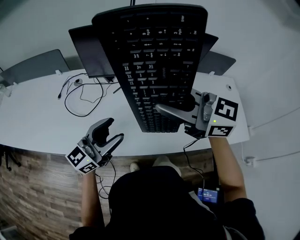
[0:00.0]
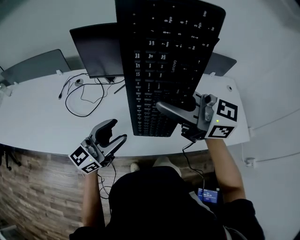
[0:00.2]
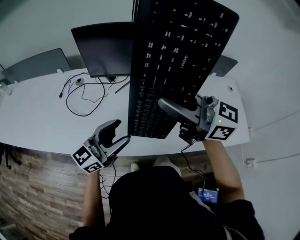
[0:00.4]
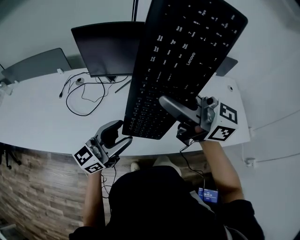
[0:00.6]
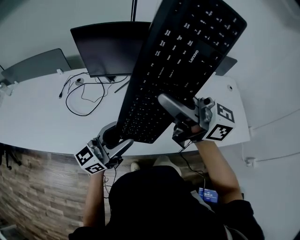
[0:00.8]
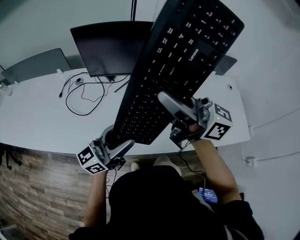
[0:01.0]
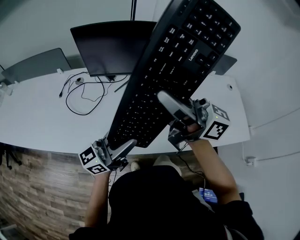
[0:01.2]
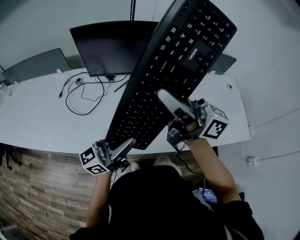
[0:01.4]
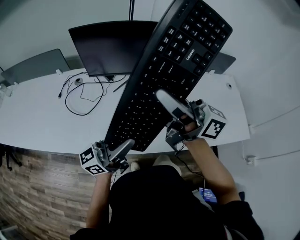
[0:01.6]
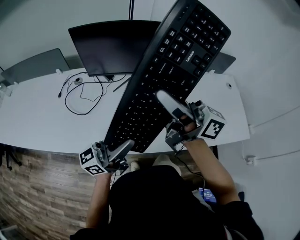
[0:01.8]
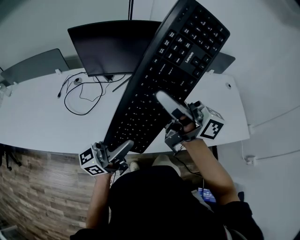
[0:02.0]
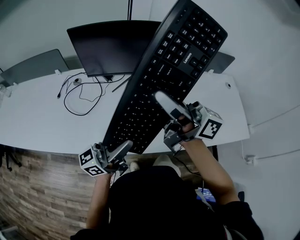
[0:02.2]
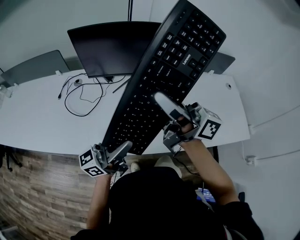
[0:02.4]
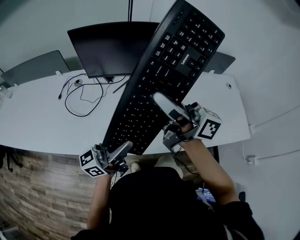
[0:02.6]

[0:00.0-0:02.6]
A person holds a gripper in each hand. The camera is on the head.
0:00.0 to 0:01.2: The right gripper tilts its fingers some 30 degrees upward. Meanwhile the left gripper changes place by roughly 5 cm.
0:01.2 to 0:02.6: The left gripper closes.

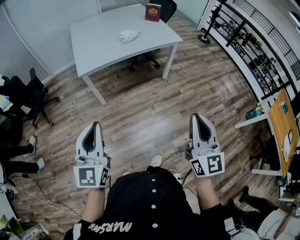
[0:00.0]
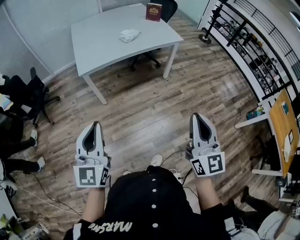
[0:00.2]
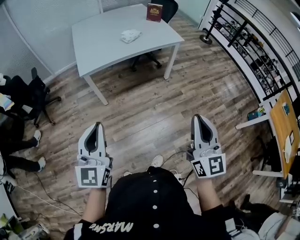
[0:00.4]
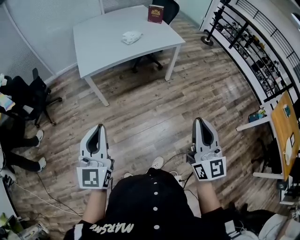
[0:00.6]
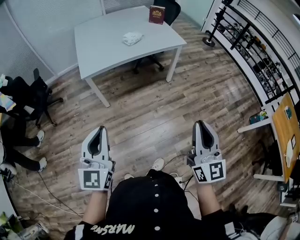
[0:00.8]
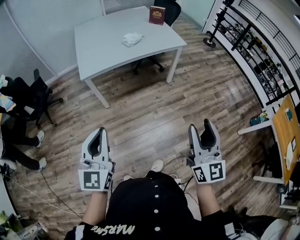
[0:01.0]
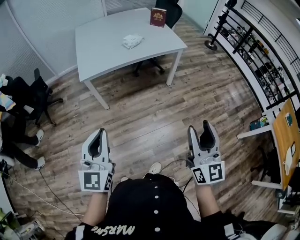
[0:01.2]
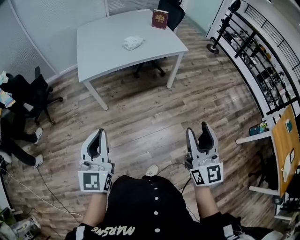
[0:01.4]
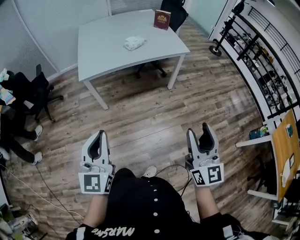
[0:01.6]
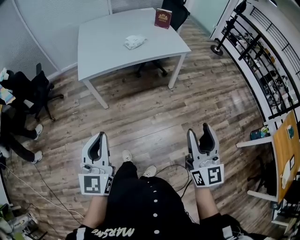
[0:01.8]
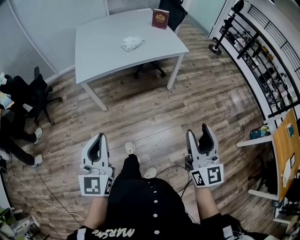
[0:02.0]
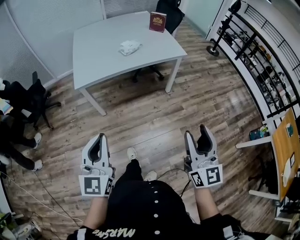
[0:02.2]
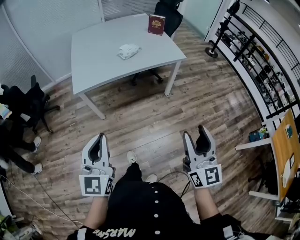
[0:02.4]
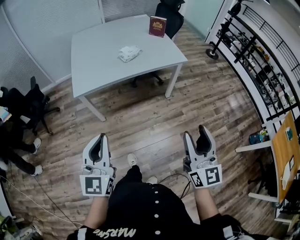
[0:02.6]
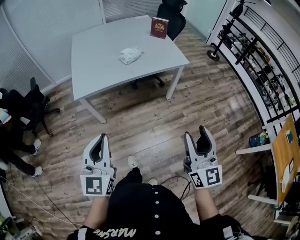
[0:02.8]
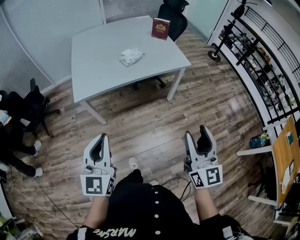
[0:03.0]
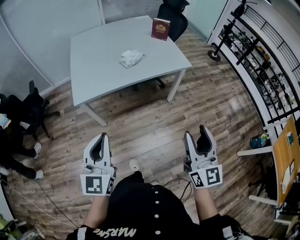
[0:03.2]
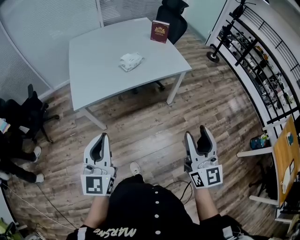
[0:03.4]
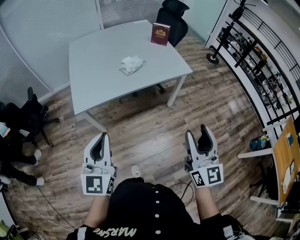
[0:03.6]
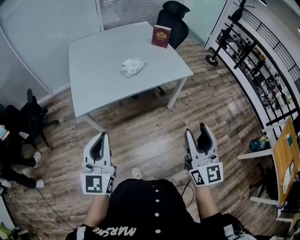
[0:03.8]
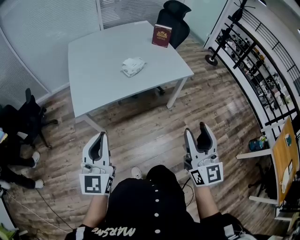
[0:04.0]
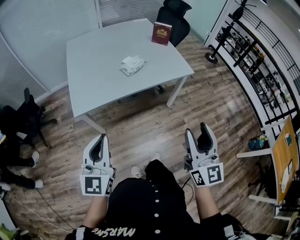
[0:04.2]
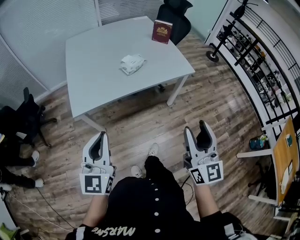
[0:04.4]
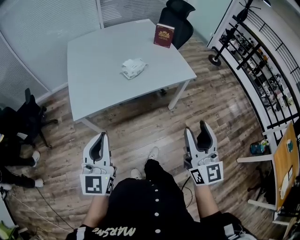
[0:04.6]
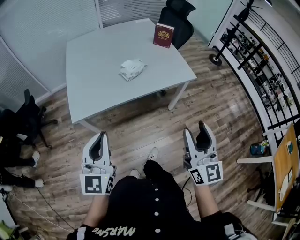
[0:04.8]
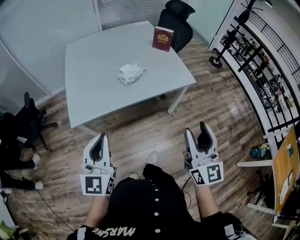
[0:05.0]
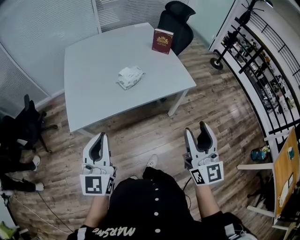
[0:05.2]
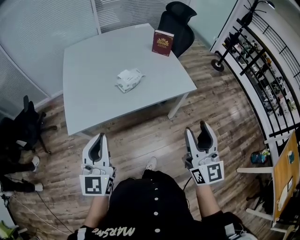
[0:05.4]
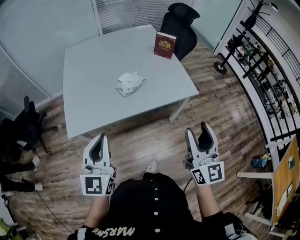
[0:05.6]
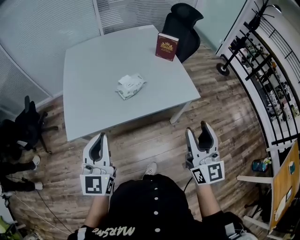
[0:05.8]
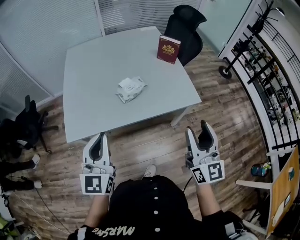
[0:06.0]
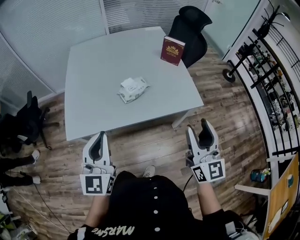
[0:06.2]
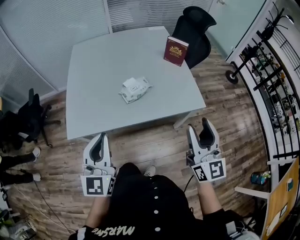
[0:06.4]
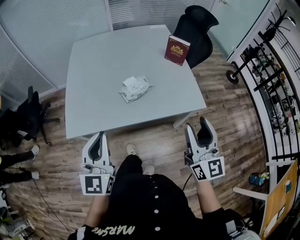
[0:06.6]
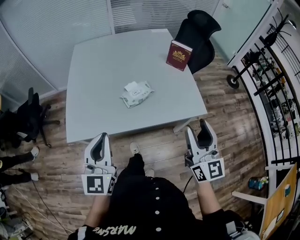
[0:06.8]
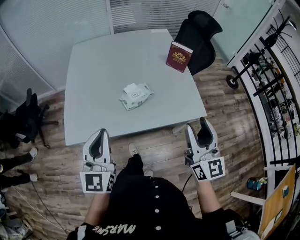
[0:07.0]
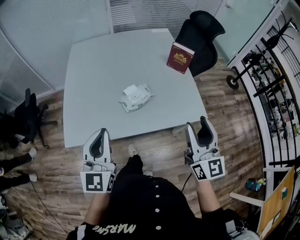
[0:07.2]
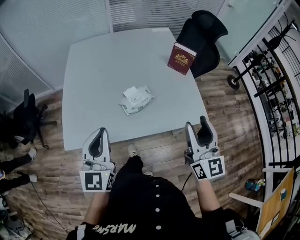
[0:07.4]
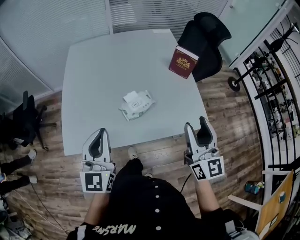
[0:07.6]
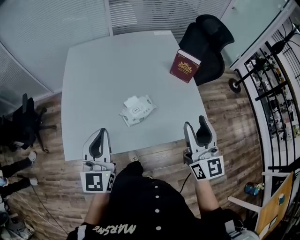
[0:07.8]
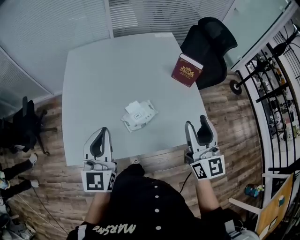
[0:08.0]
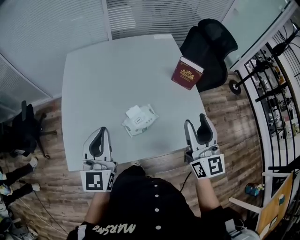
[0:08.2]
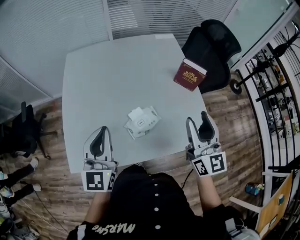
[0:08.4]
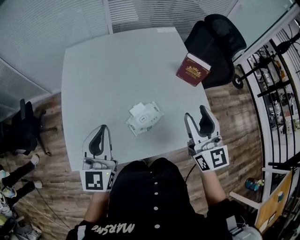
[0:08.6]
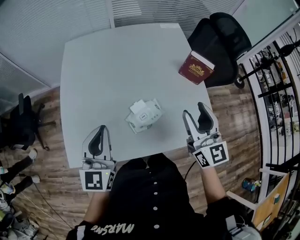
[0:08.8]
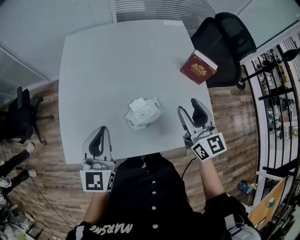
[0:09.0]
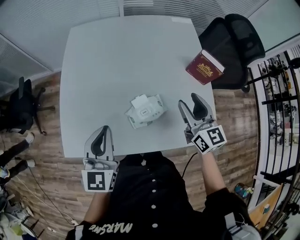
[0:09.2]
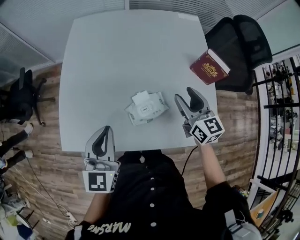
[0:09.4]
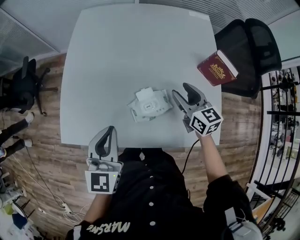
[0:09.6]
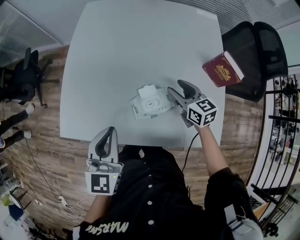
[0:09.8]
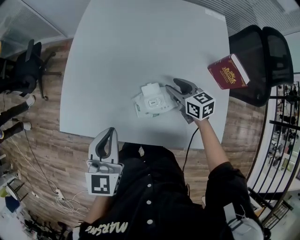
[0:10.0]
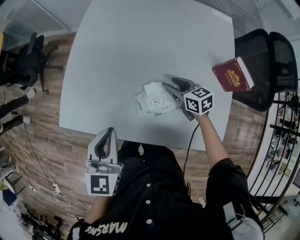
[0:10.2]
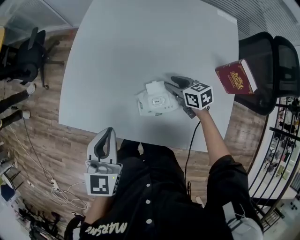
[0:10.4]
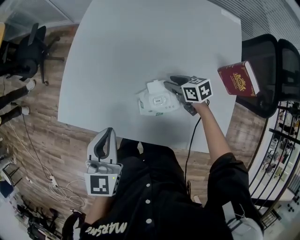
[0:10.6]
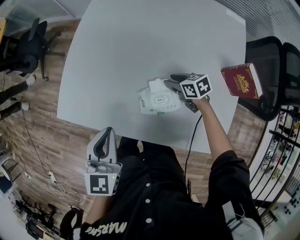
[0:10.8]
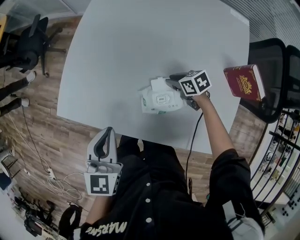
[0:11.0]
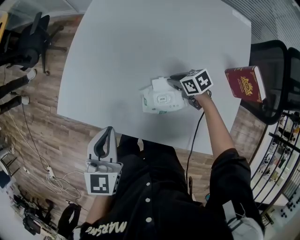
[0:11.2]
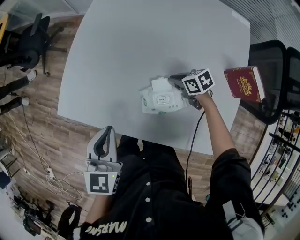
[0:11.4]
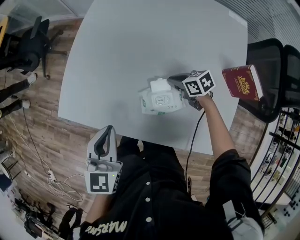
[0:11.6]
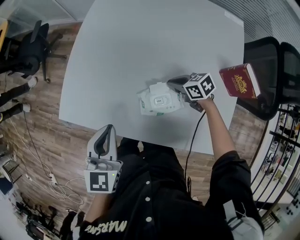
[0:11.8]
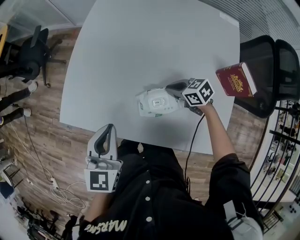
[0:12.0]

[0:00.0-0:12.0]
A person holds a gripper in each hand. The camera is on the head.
0:00.0 to 0:01.6: The left gripper heads to the right, covering about 10 cm. Meanwhile the right gripper is displaced to the right and forward by some 10 cm, and opens.
0:01.6 to 0:03.0: Both grippers move forward, approximately 15 cm.
0:03.0 to 0:04.4: The left gripper is displaced forward by roughly 10 cm, while the right gripper is displaced forward and to the left by approximately 15 cm.
0:04.4 to 0:06.0: Both grippers travel together forward, approximately 20 cm.
0:06.0 to 0:07.6: The grippers both shift forward by roughly 15 cm.
0:07.6 to 0:09.0: The right gripper is displaced forward by about 20 cm. Meanwhile the left gripper travels forward by some 10 cm.
0:09.0 to 0:10.4: The left gripper is displaced downward by roughly 5 cm, and rotates some 20 degrees. The right gripper shifts approximately 25 cm downward, and points its fingers approximately 30 degrees further downward.
0:10.4 to 0:12.0: The right gripper swivels about 20 degrees, and closes its fingers.

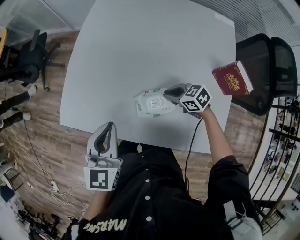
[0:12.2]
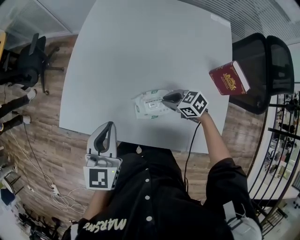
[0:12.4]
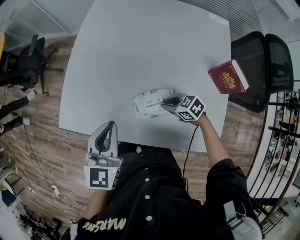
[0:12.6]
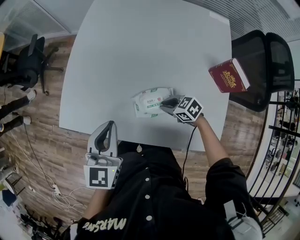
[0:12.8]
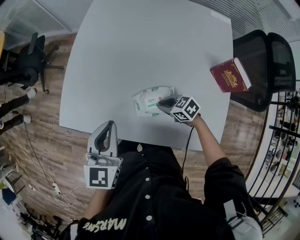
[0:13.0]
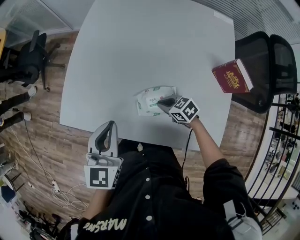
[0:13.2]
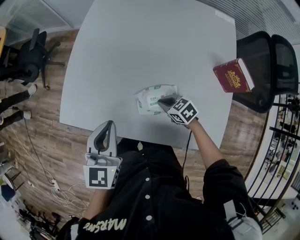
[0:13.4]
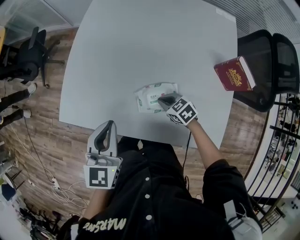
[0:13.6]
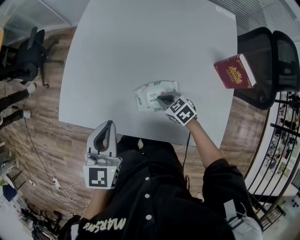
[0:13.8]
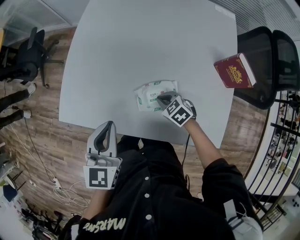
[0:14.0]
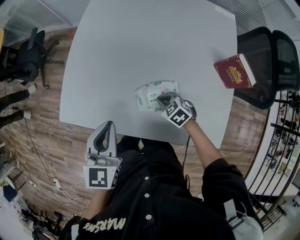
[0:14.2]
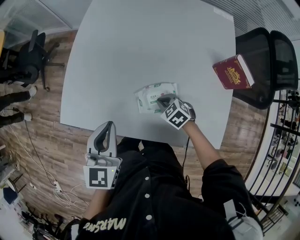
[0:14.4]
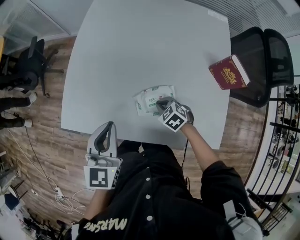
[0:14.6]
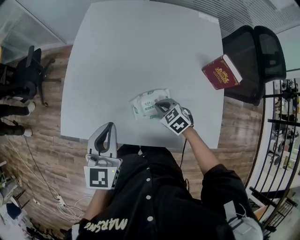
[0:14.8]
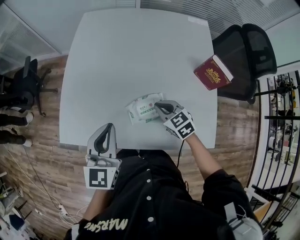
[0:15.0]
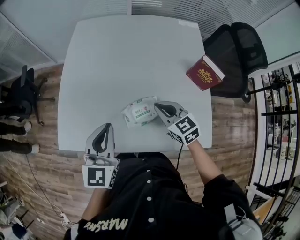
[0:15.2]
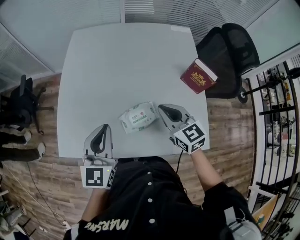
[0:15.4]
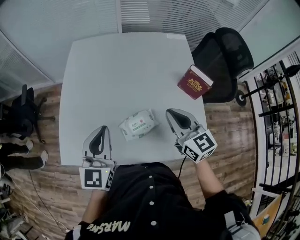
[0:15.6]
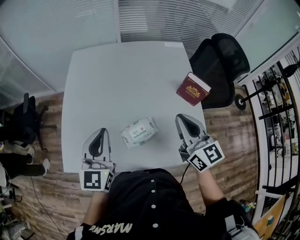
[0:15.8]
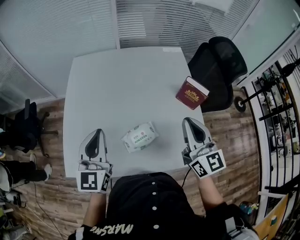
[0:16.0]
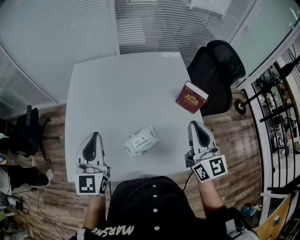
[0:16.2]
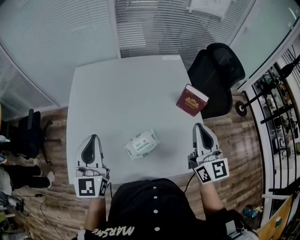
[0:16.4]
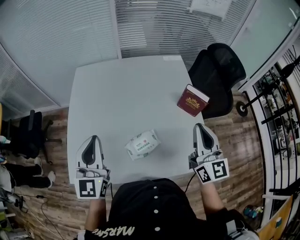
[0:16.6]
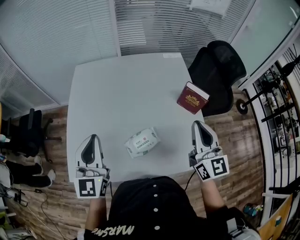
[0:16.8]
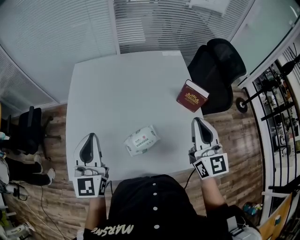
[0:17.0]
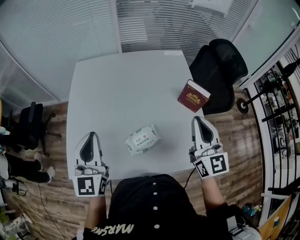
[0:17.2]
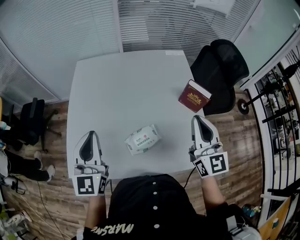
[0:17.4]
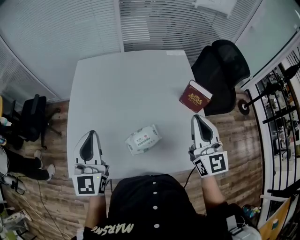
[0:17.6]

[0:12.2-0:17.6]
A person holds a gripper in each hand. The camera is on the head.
0:12.2 to 0:13.6: The right gripper changes place by some 5 cm.
0:13.6 to 0:15.0: The right gripper is displaced upward by approximately 10 cm, and rotates about 20 degrees.
0:15.0 to 0:16.2: The right gripper moves upward and to the right, roughly 30 cm, and tilts its fingers some 40 degrees upward, while the left gripper travels upward and forward by approximately 10 cm.
0:16.2 to 0:17.6: The grippers stay close to where they were, moving slightly.

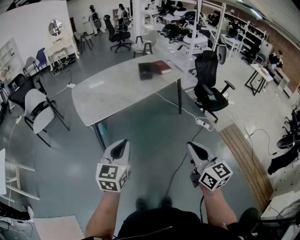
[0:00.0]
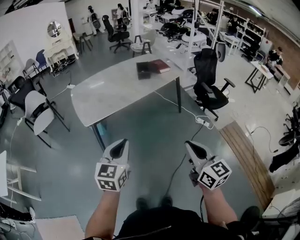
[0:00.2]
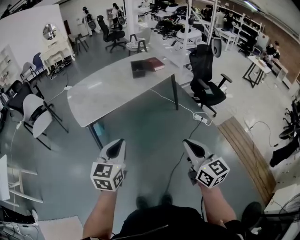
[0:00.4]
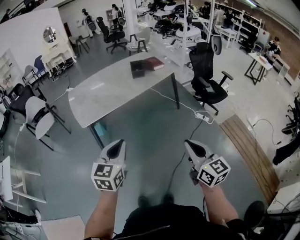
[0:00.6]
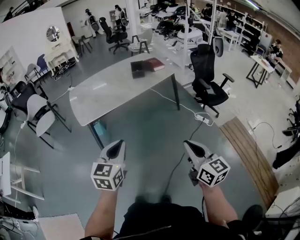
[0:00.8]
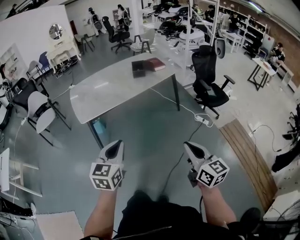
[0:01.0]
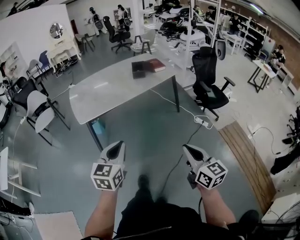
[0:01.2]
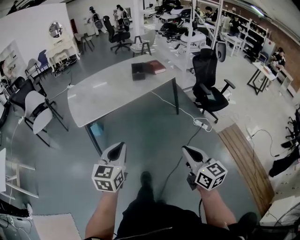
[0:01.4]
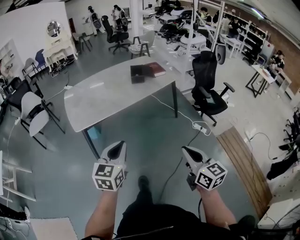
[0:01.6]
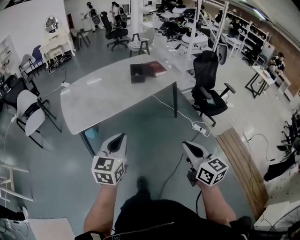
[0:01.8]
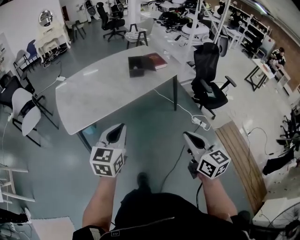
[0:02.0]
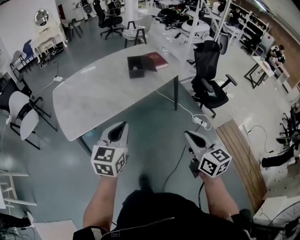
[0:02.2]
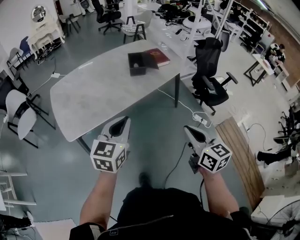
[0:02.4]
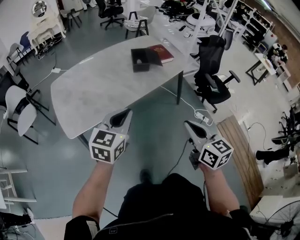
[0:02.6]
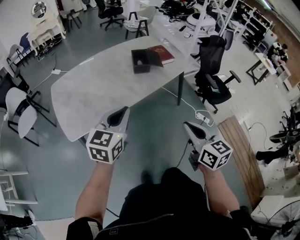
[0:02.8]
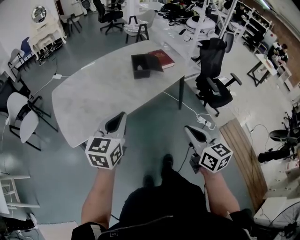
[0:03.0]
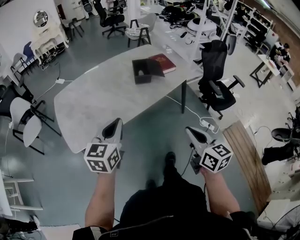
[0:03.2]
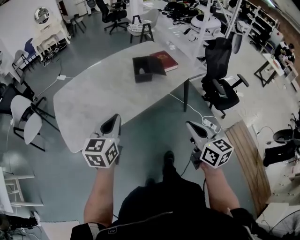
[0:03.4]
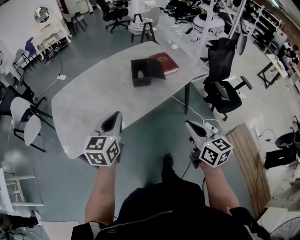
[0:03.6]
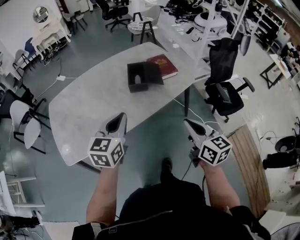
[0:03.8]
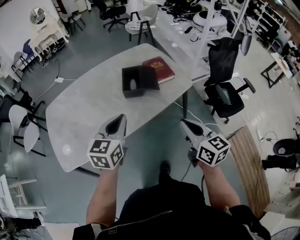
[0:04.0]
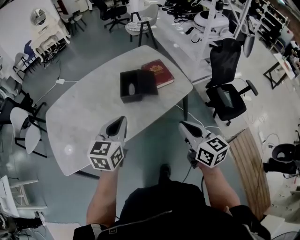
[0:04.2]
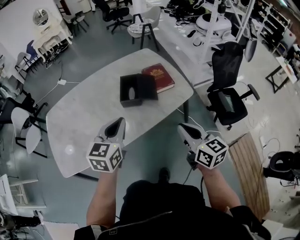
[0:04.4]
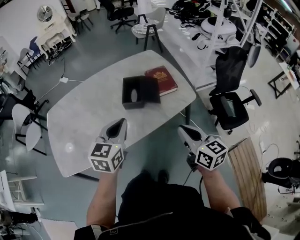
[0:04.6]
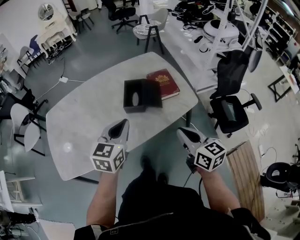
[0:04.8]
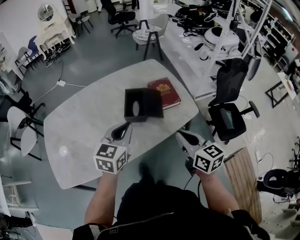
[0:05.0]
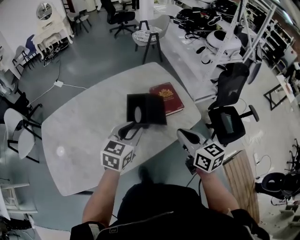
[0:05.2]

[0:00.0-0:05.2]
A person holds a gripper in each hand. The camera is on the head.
0:00.0 to 0:01.8: Both grippers move forward and to the right, approximately 15 cm.
0:01.8 to 0:03.4: The two grippers go roughly 30 cm forward.
0:03.4 to 0:05.2: Both grippers are carried forward, approximately 40 cm. The left gripper opens.
